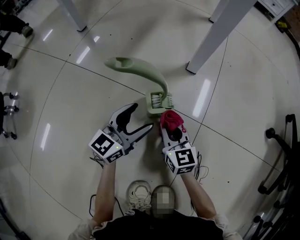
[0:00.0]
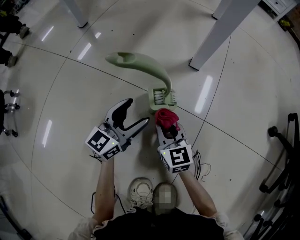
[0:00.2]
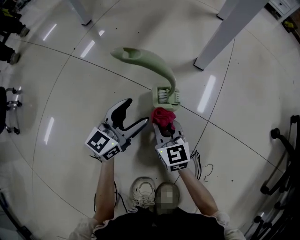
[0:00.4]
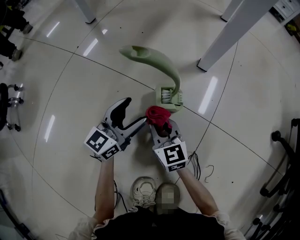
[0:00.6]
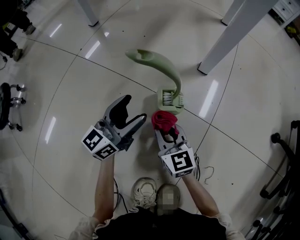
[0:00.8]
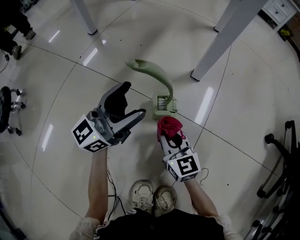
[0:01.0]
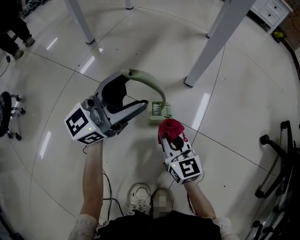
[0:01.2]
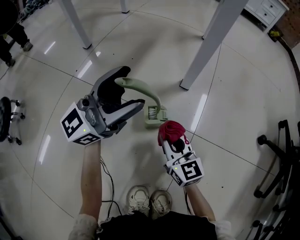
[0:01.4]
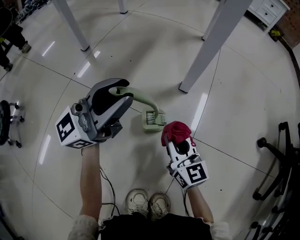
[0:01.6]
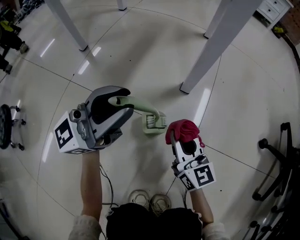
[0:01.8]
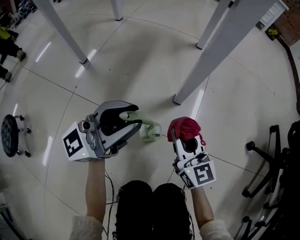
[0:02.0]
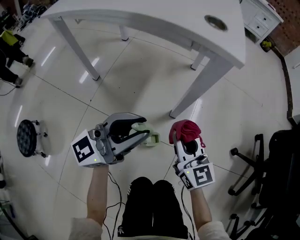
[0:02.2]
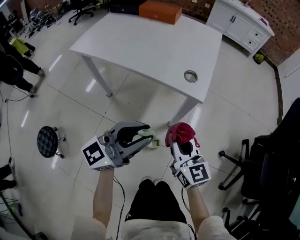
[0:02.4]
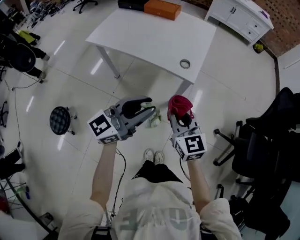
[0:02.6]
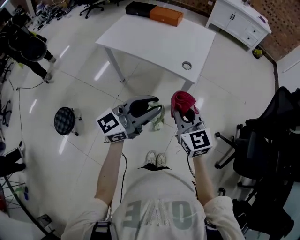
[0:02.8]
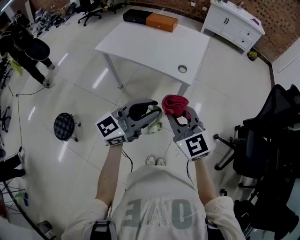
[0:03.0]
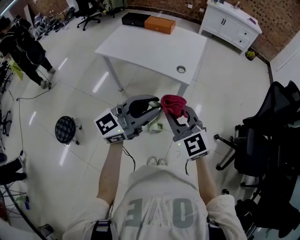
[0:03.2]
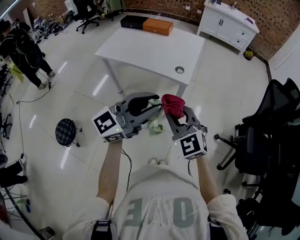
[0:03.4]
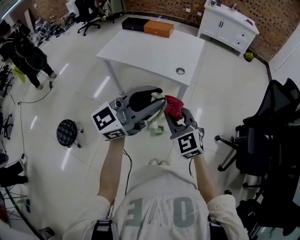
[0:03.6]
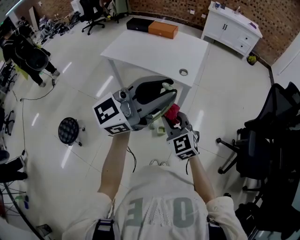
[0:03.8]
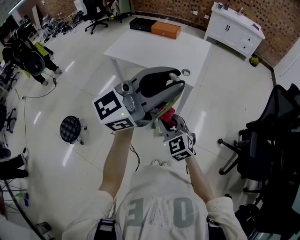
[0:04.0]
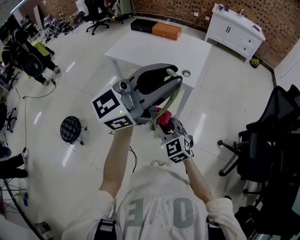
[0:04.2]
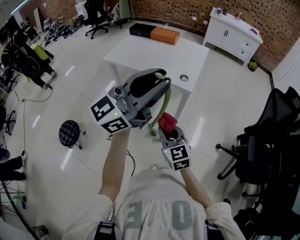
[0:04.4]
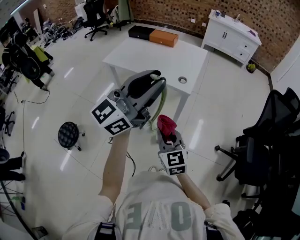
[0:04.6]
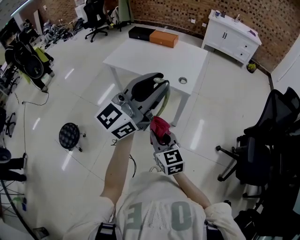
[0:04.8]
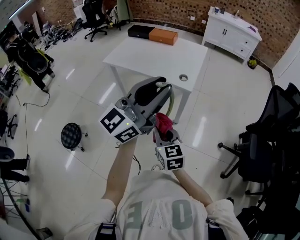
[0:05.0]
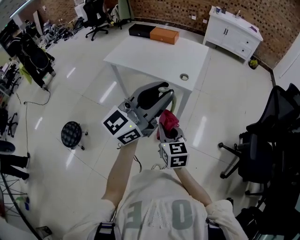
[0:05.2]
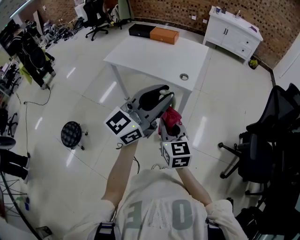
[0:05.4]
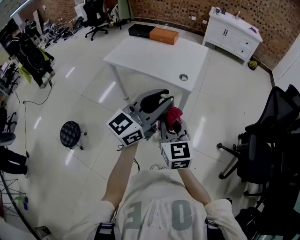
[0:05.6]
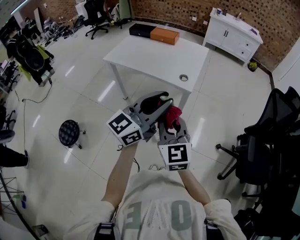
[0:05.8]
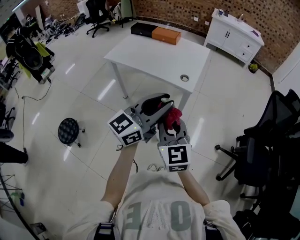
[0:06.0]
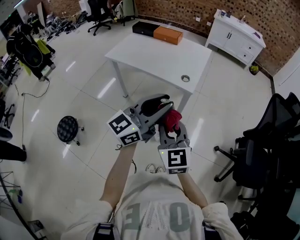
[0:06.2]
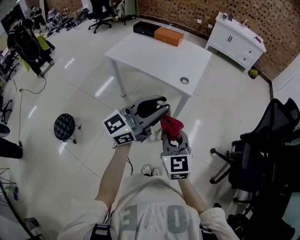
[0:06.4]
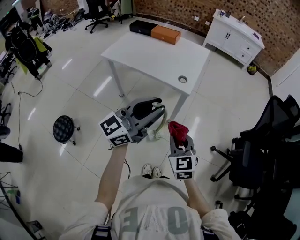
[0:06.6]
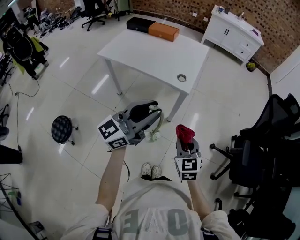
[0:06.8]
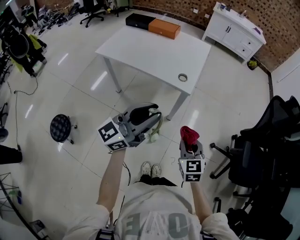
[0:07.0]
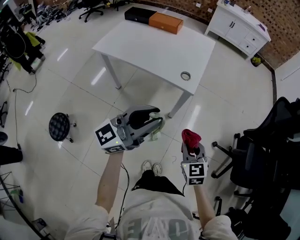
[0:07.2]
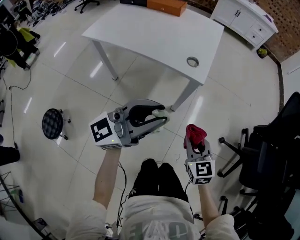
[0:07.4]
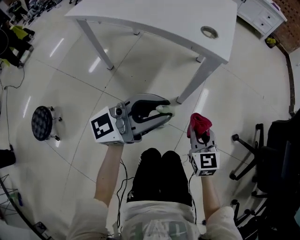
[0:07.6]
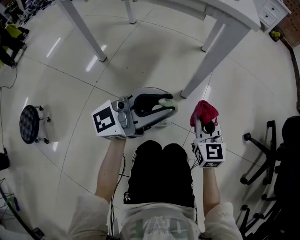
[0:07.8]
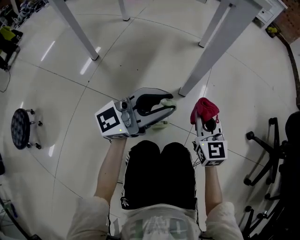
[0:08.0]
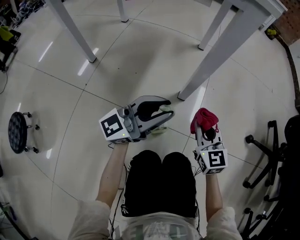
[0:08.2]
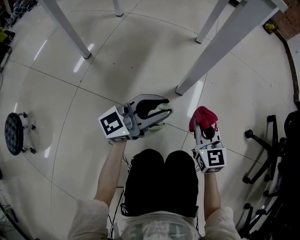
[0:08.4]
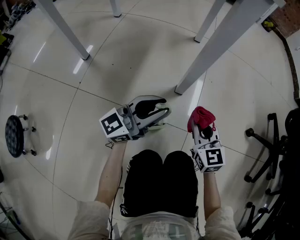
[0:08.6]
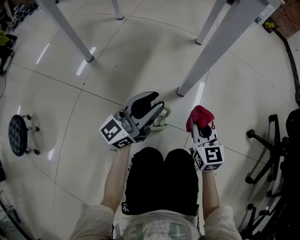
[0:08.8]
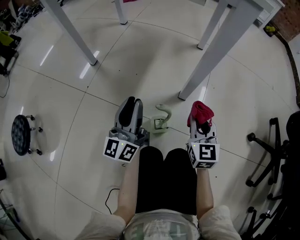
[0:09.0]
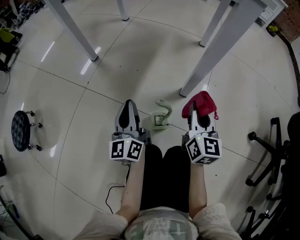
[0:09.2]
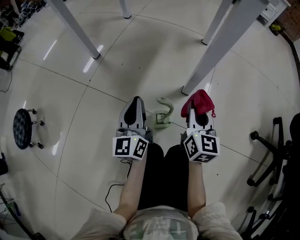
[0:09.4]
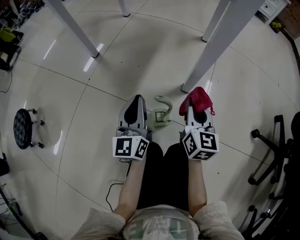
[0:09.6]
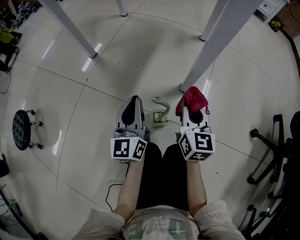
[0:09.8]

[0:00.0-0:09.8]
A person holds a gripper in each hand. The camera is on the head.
0.0 to 1.4 s: The left gripper is displaced upward by roughly 25 cm, and turns by roughly 30 degrees. The right gripper is displaced upward by some 10 cm.
1.4 to 2.8 s: The two grippers go roughly 80 cm upward. The left gripper closes up.
2.8 to 4.2 s: The right gripper shifts approximately 10 cm backward, and turns by roughly 30 degrees, while the left gripper moves upward, about 20 cm.
4.2 to 5.6 s: The left gripper moves downward, some 10 cm. The right gripper moves upward, approximately 10 cm, and rotates approximately 30 degrees.
5.6 to 7.0 s: The left gripper shifts roughly 5 cm downward. Meanwhile the right gripper moves downward and to the right, about 15 cm, and changes its angle by some 20 degrees.
7.0 to 8.4 s: The two grippers go some 70 cm downward.
8.4 to 9.8 s: The left gripper changes place by some 10 cm, and turns by approximately 60 degrees, while the right gripper ends up some 5 cm from where it was.

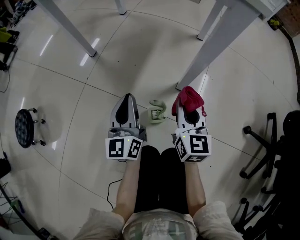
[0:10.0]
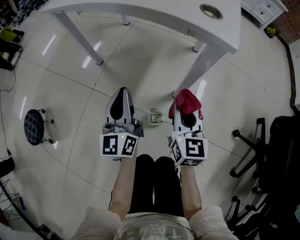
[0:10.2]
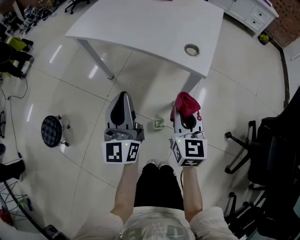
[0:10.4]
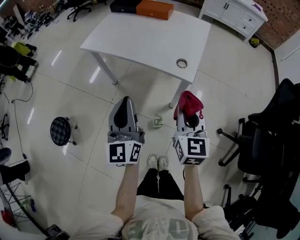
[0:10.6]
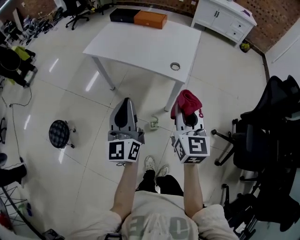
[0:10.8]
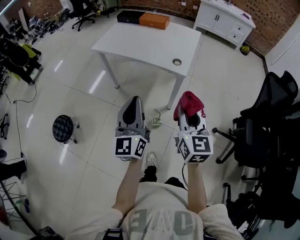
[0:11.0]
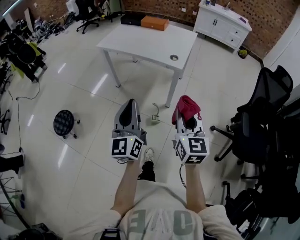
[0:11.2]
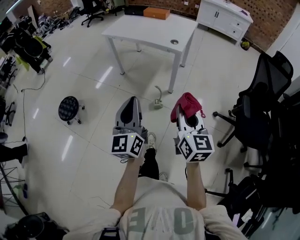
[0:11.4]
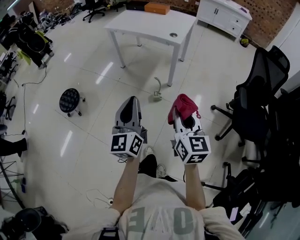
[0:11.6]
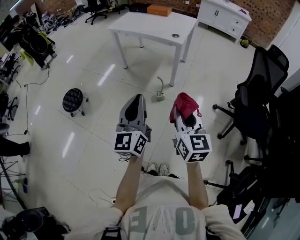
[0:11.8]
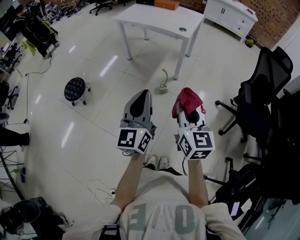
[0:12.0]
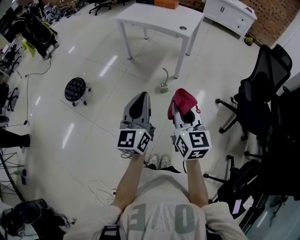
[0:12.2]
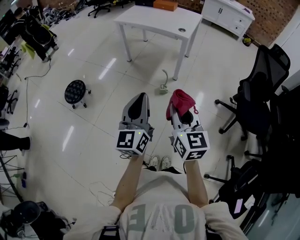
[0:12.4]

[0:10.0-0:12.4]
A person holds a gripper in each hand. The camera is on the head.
10.0 to 11.2 s: Both grippers travel together upward and backward, some 70 cm.
11.2 to 12.4 s: Both grippers move backward, approximately 30 cm.

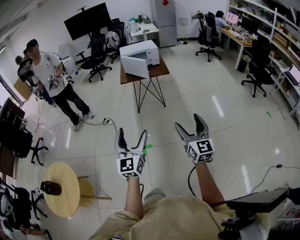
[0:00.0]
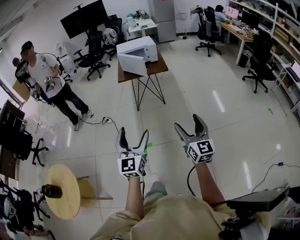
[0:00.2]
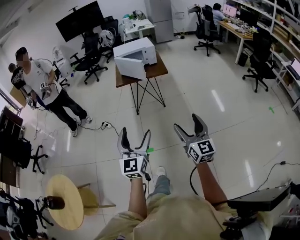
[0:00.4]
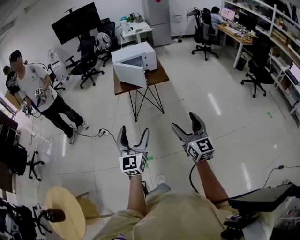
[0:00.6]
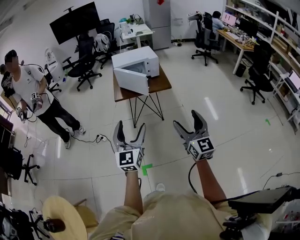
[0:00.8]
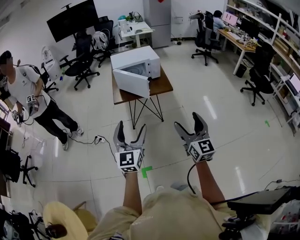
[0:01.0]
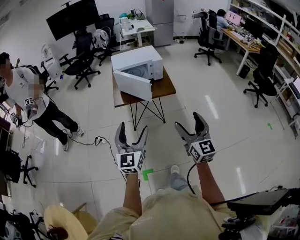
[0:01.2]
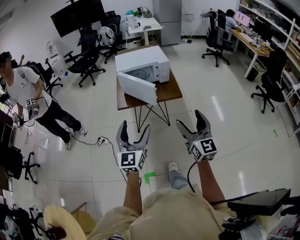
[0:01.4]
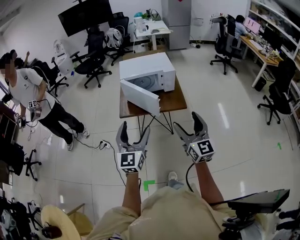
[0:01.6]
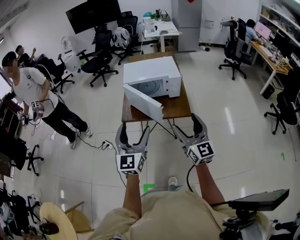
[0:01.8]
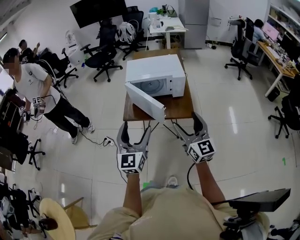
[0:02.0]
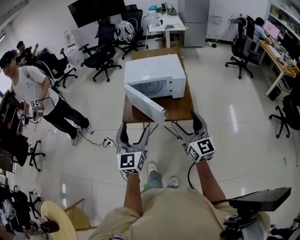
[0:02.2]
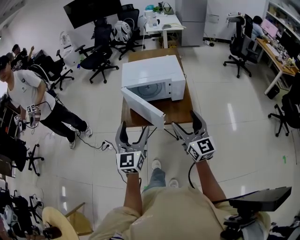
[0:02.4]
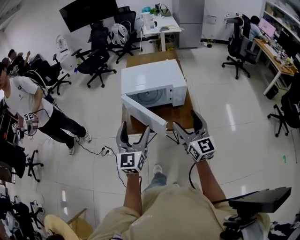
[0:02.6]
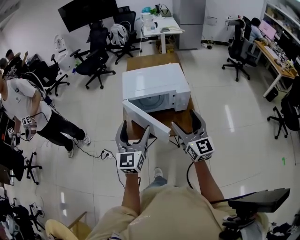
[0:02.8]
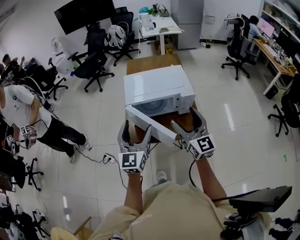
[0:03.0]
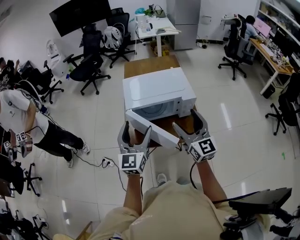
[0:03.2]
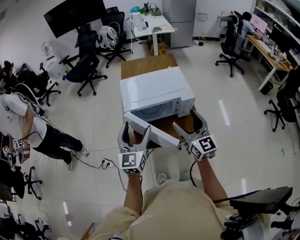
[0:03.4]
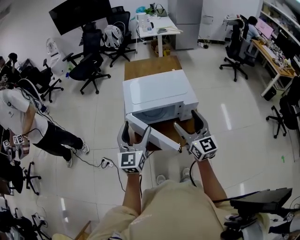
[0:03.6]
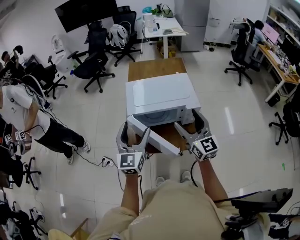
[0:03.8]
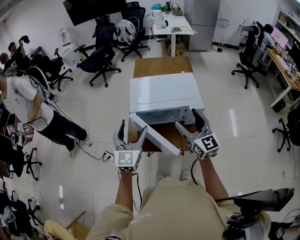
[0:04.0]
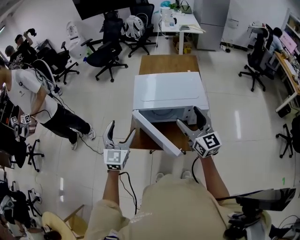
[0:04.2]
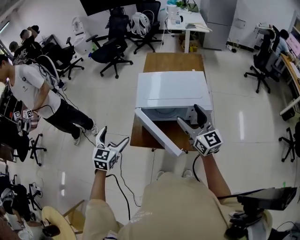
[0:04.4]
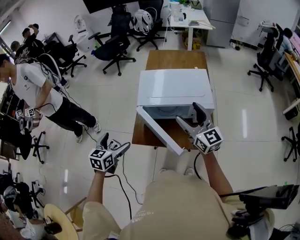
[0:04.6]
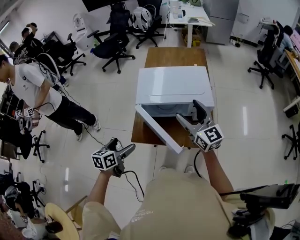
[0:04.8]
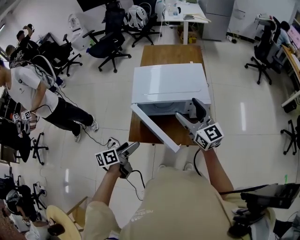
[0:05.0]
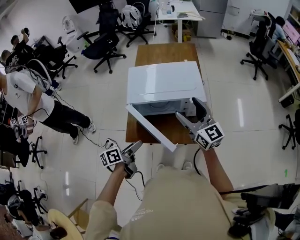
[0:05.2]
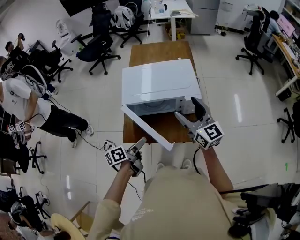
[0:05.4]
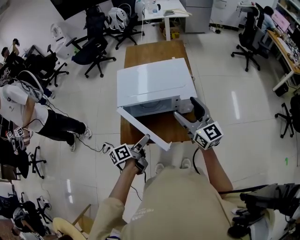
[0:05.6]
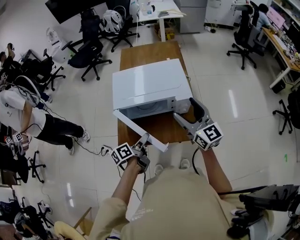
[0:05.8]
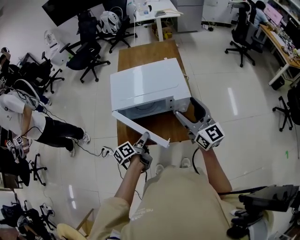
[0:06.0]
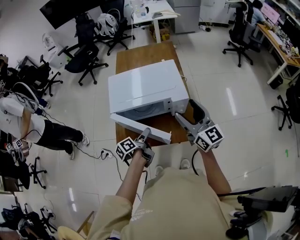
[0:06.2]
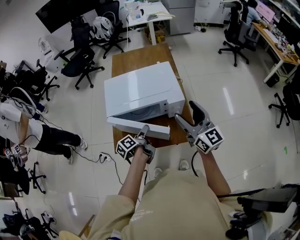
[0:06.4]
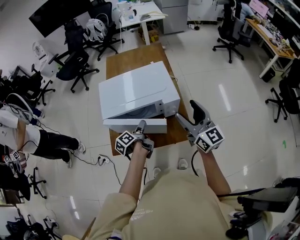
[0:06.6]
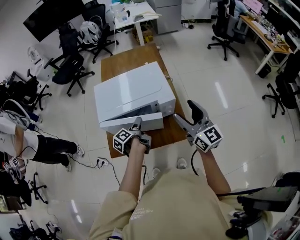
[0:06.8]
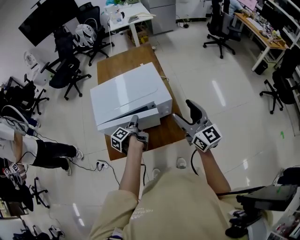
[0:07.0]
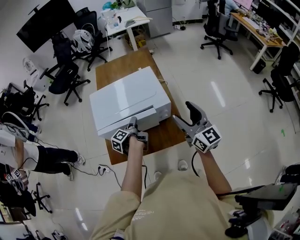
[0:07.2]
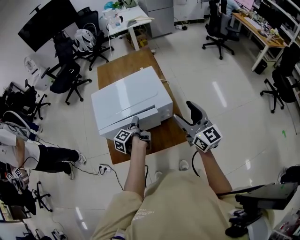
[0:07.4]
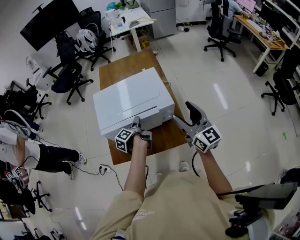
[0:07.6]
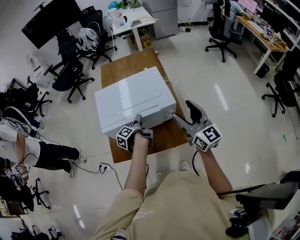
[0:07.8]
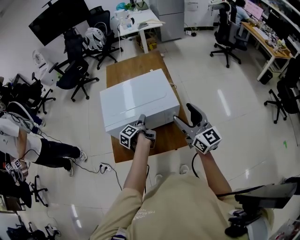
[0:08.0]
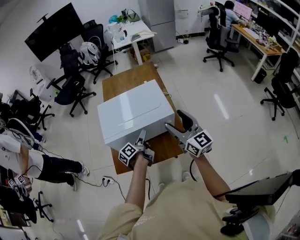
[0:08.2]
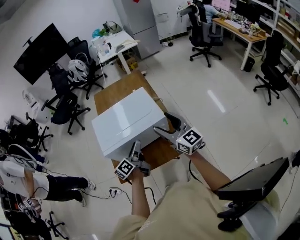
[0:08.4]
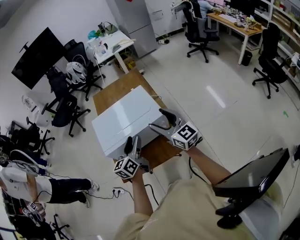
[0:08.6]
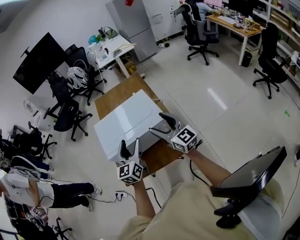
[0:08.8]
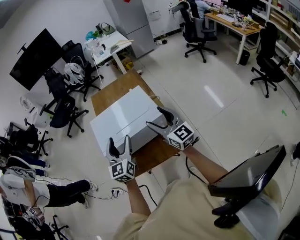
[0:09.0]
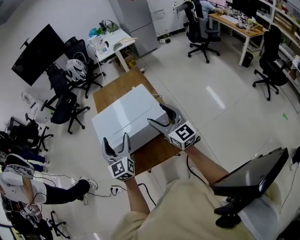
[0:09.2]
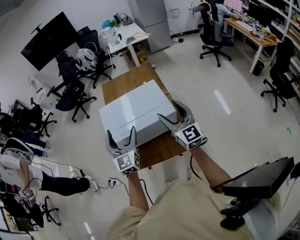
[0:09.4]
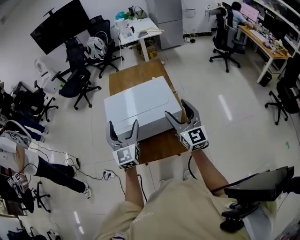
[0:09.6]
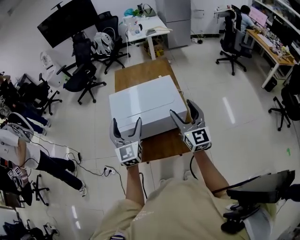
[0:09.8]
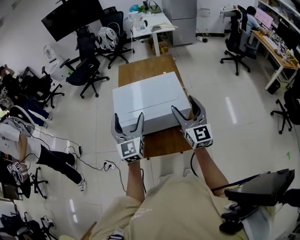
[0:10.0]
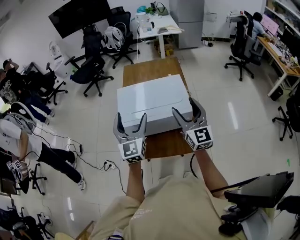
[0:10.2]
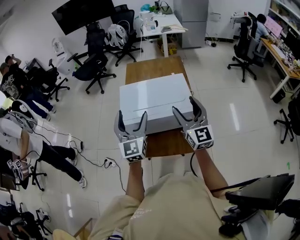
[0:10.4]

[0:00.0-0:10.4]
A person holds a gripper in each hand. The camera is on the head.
0.0 to 1.4 s: Both grippers are carried forward, roughly 50 cm.
1.4 to 3.0 s: Both grippers travel together forward, roughly 40 cm.
3.0 to 4.4 s: The left gripper travels downward, forward and to the left by about 20 cm, and swivels about 30 degrees; the right gripper travels forward by approximately 15 cm.
4.4 to 6.0 s: The right gripper moves to the right and upward, roughly 10 cm, while the left gripper shifts some 20 cm to the right and downward, rotates around the line of its fingers by approximately 80 degrees, counterclockwise from behind, and closes.
6.0 to 7.4 s: The left gripper is displaced forward by approximately 15 cm, and rotates roughly 20 degrees. The right gripper moves to the right, some 5 cm.
7.4 to 9.0 s: The right gripper heads to the left, covering roughly 5 cm. The left gripper travels upward and backward by approximately 30 cm, and twists roughly 80 degrees clockwise, seen from behind.
9.0 to 10.4 s: The left gripper shifts approximately 5 cm to the left, and turns by about 20 degrees. The right gripper changes place by approximately 5 cm.

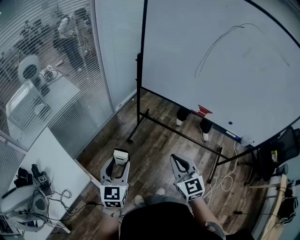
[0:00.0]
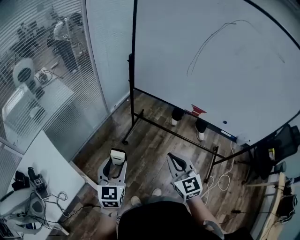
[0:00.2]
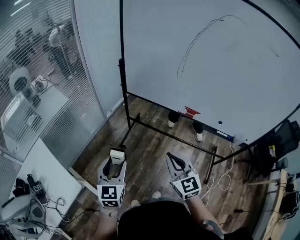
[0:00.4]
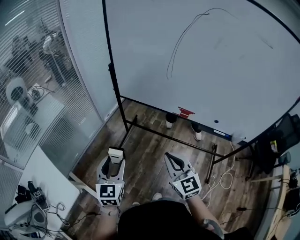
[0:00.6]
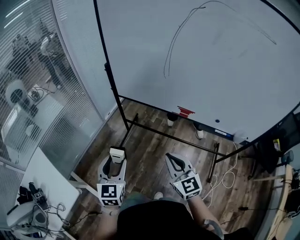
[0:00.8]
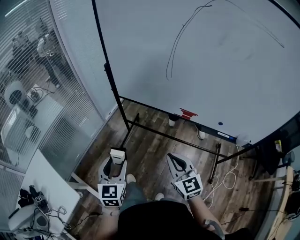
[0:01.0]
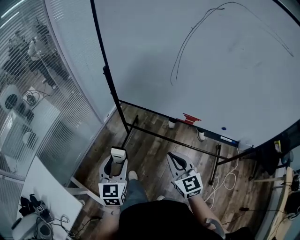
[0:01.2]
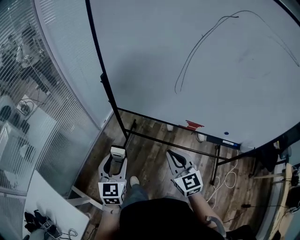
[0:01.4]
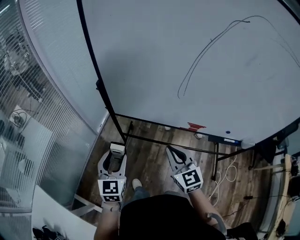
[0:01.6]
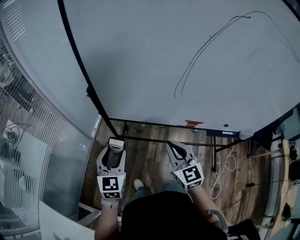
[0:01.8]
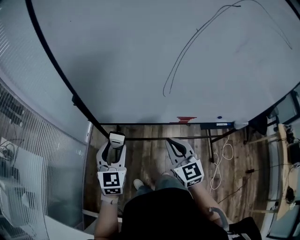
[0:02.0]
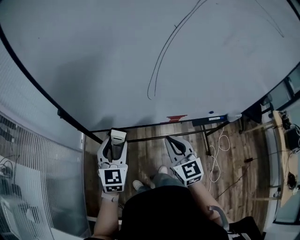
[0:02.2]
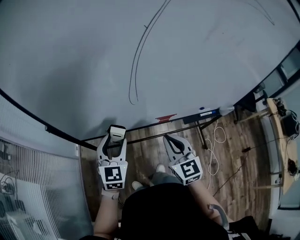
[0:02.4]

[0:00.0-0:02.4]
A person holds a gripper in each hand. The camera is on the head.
0.0 to 1.2 s: Both grippers move forward and to the right, about 20 cm.
1.2 to 2.4 s: The left gripper ends up about 30 cm from where it was, and turns by some 40 degrees. Meanwhile the right gripper changes place by roughly 20 cm, and rotates about 30 degrees.
